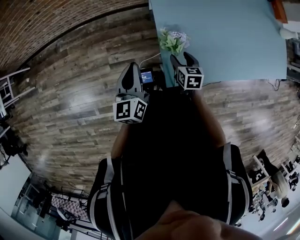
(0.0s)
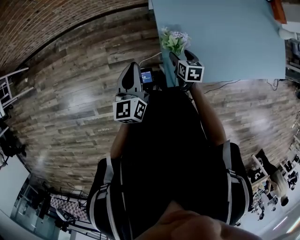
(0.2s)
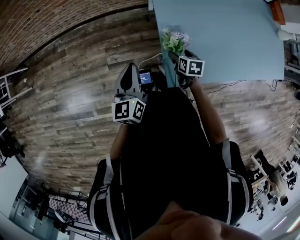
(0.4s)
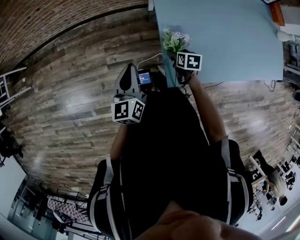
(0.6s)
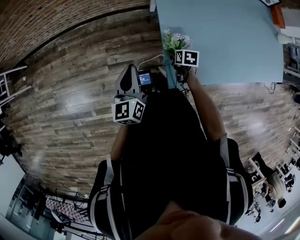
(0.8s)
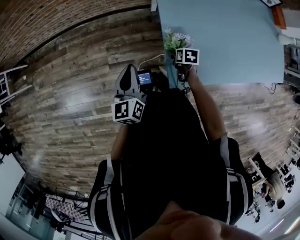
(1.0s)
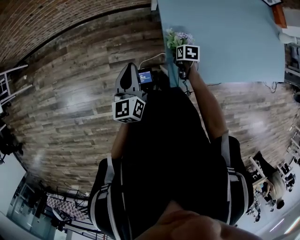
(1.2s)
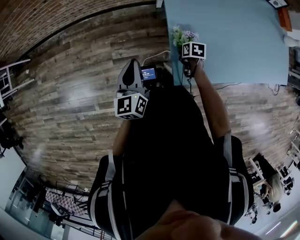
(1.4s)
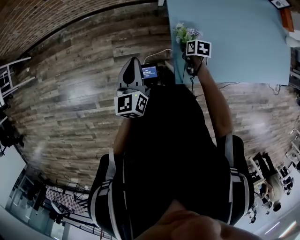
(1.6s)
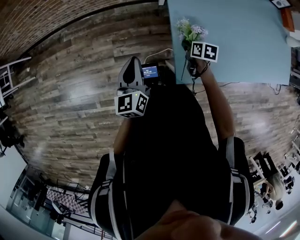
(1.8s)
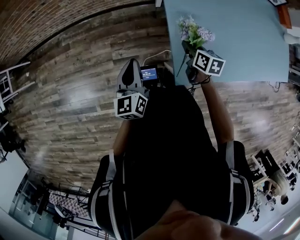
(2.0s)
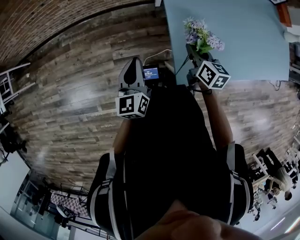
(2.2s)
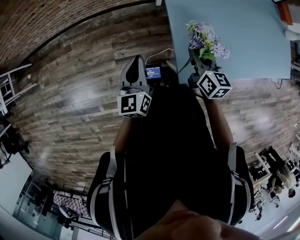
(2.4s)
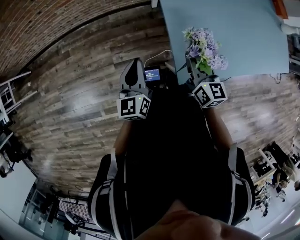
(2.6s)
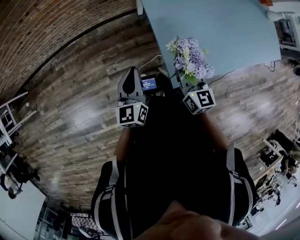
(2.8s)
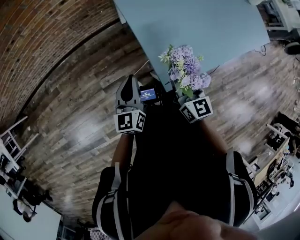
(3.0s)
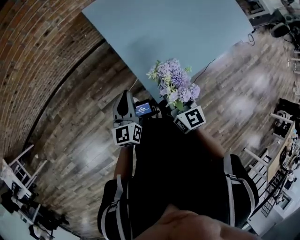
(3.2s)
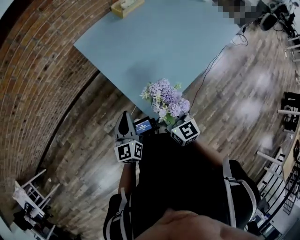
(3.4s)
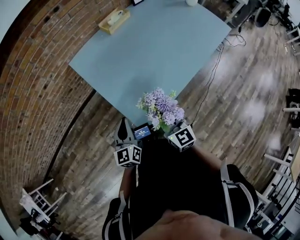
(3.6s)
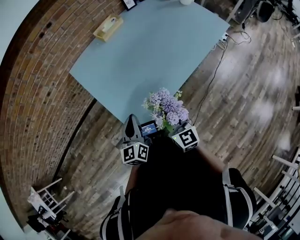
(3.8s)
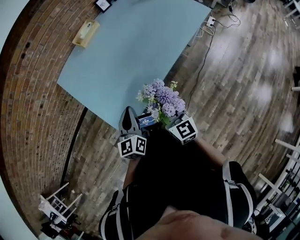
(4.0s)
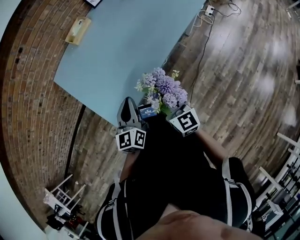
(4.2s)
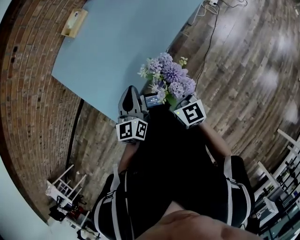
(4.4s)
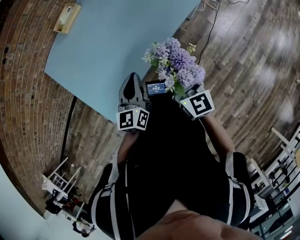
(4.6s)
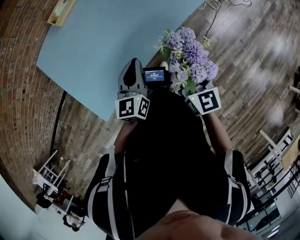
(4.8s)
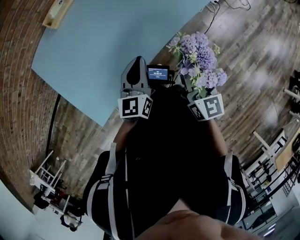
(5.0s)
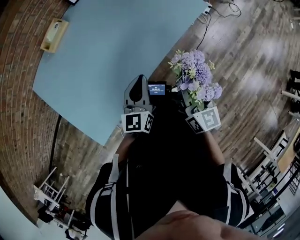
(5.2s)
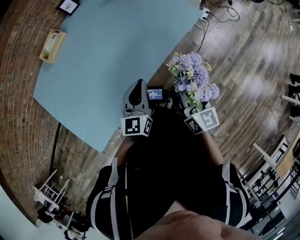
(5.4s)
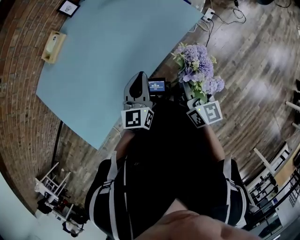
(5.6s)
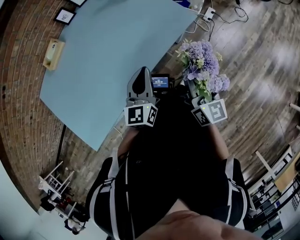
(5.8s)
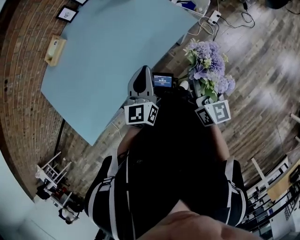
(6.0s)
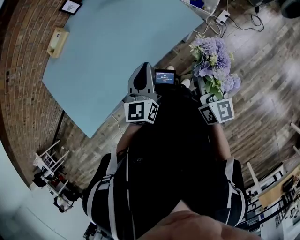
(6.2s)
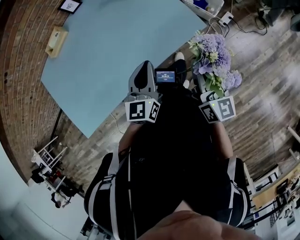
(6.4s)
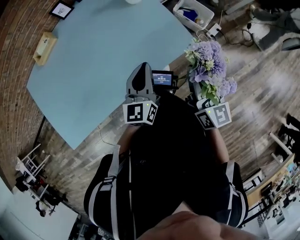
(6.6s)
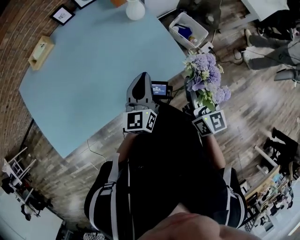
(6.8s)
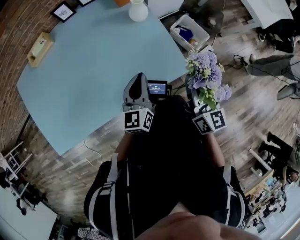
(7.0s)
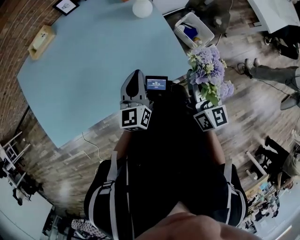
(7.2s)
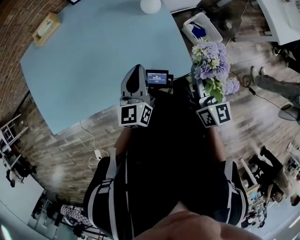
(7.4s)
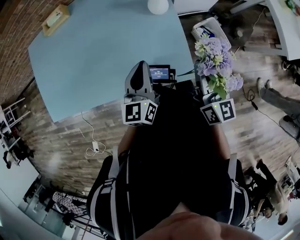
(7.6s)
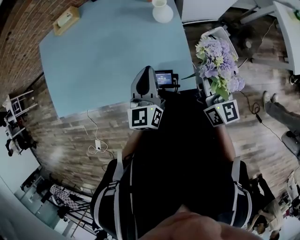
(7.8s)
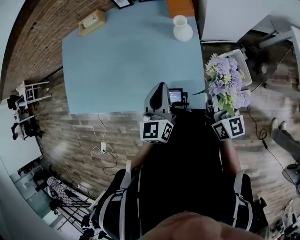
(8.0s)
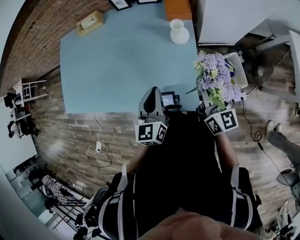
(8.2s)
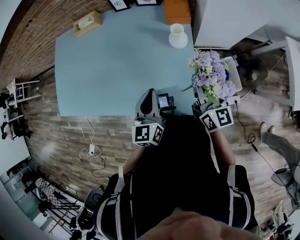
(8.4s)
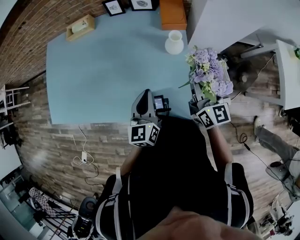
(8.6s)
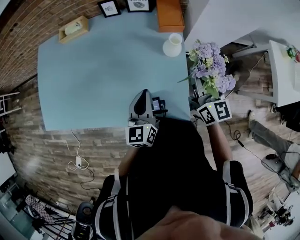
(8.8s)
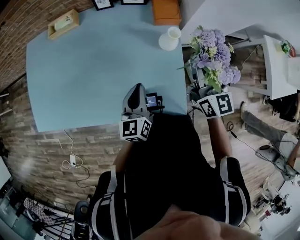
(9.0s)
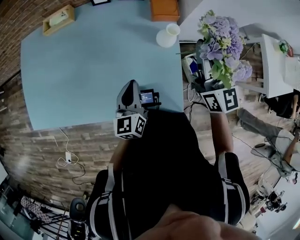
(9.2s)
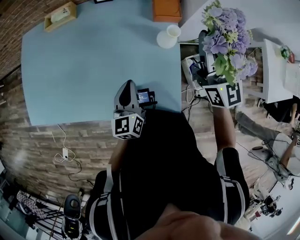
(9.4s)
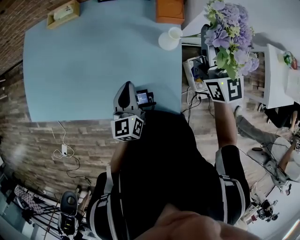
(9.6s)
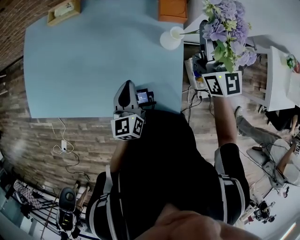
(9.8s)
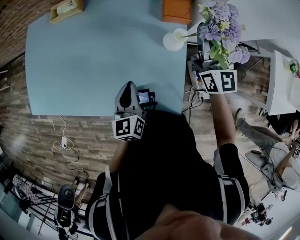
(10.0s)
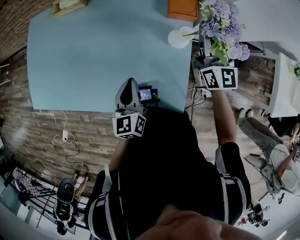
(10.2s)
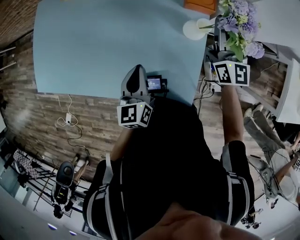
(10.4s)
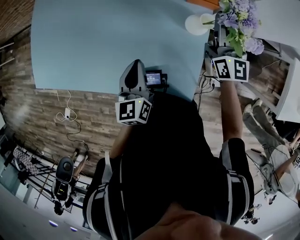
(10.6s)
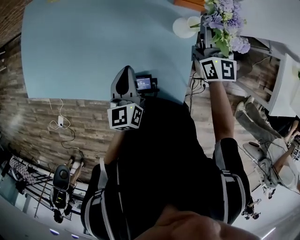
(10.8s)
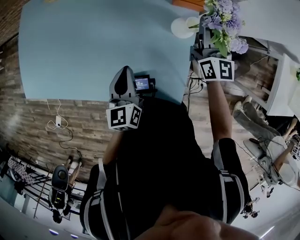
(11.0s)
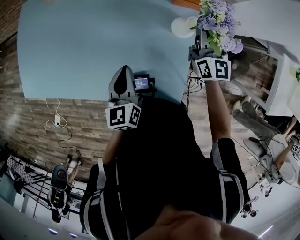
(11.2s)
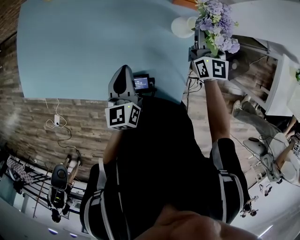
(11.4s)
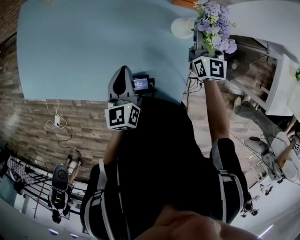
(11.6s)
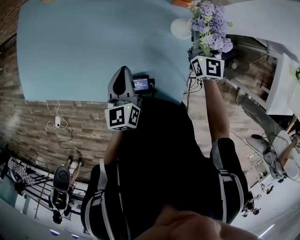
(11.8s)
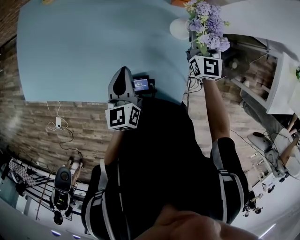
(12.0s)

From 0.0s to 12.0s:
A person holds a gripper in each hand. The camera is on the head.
From 0.0s to 1.6s: The left gripper goes roughly 5 cm to the left, while the right gripper is displaced downward by some 10 cm, turns by about 30 degrees, and closes its fingers.
From 1.6s to 3.0s: The right gripper shifts some 25 cm upward, and tilts its fingers roughly 50 degrees upward. Meanwhile the left gripper moves approximately 5 cm, and changes its angle by roughly 20 degrees.
From 3.0s to 4.4s: The two grippers travel together, to the right, some 50 cm. The left gripper turns by about 20 degrees.
From 4.4s to 6.0s: Both grippers are carried to the right and forward, roughly 50 cm.
From 6.0s to 7.6s: The right gripper ends up roughly 35 cm from where it was, and changes its angle by about 30 degrees, while the left gripper moves about 25 cm, and turns by approximately 30 degrees.
From 7.6s to 9.0s: The right gripper shifts approximately 20 cm forward. Meanwhile the left gripper travels forward by some 10 cm.
From 9.0s to 10.4s: The right gripper is displaced forward and downward by roughly 15 cm.
From 10.4s to 12.0s: The right gripper is displaced downward by roughly 10 cm.

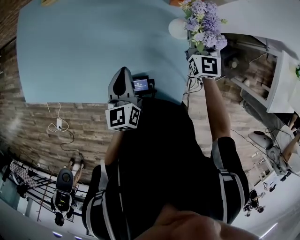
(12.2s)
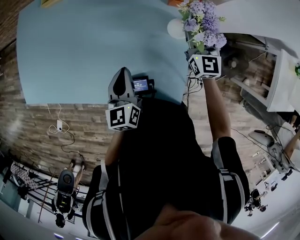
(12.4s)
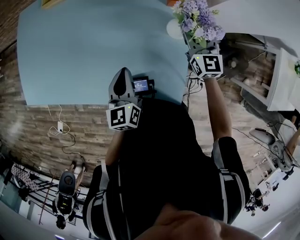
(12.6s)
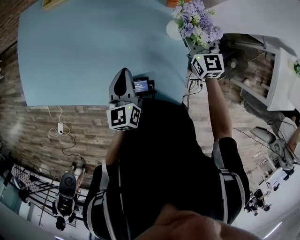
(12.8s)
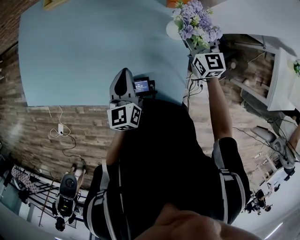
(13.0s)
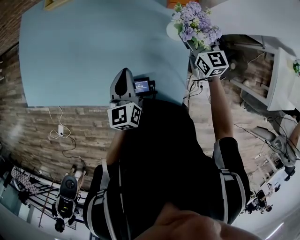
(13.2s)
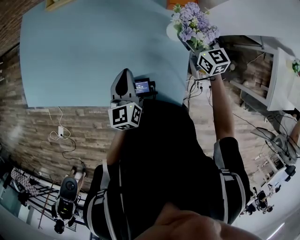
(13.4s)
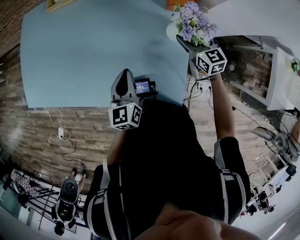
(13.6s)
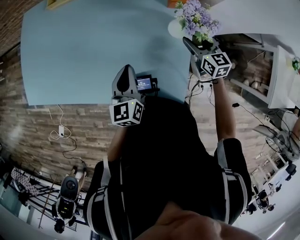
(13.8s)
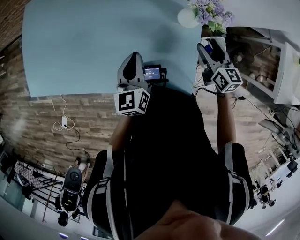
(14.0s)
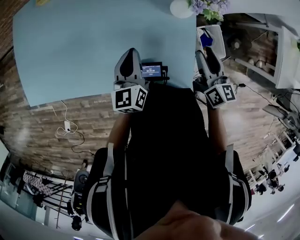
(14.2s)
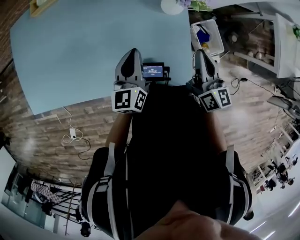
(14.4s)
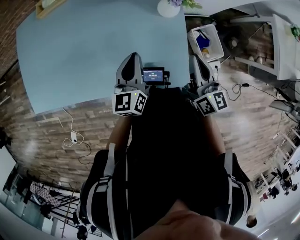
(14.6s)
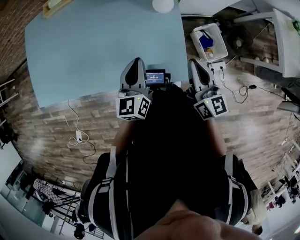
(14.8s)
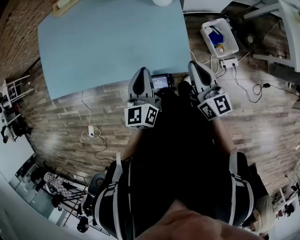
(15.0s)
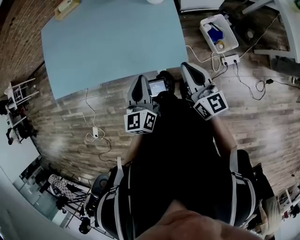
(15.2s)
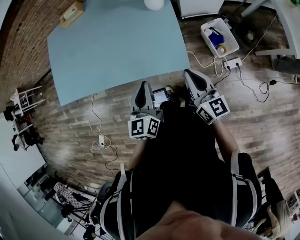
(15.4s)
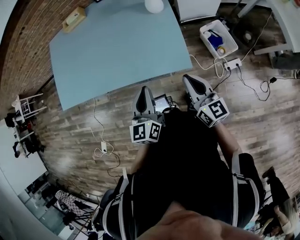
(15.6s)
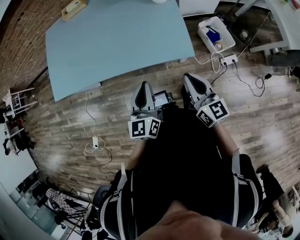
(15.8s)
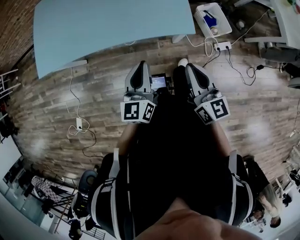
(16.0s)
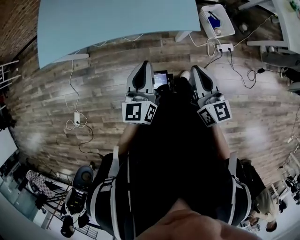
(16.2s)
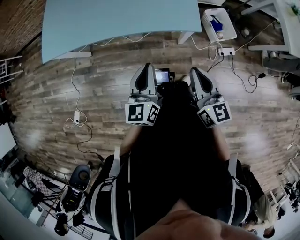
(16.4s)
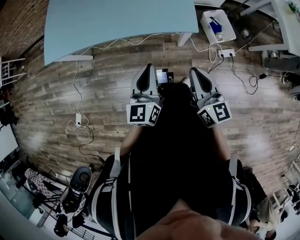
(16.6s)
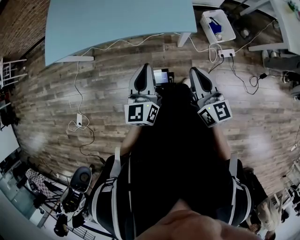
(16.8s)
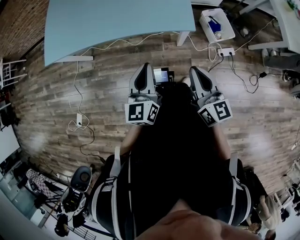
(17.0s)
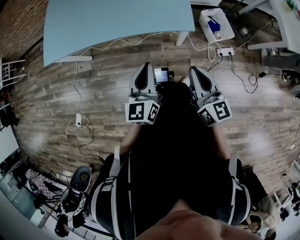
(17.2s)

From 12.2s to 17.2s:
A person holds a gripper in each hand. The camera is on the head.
From 12.2s to 13.8s: The right gripper shifts some 10 cm backward and downward, changes its angle by some 30 degrees, and opens.
From 13.8s to 15.6s: Both grippers travel together backward, some 40 cm. The right gripper rotates about 30 degrees, and closes up.
From 15.6s to 17.2s: The left gripper travels backward by some 15 cm. Meanwhile the right gripper shifts about 20 cm backward and to the left.

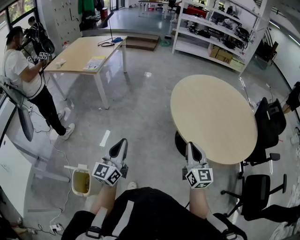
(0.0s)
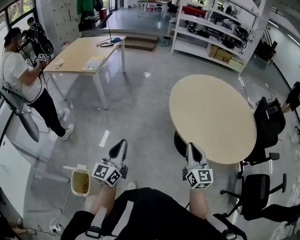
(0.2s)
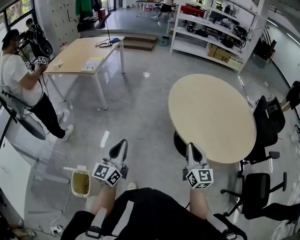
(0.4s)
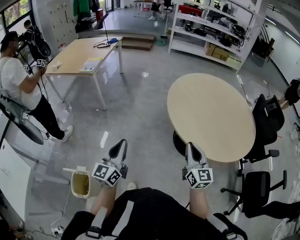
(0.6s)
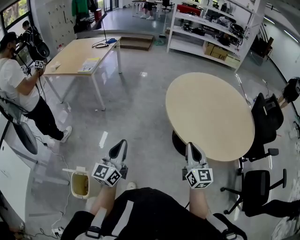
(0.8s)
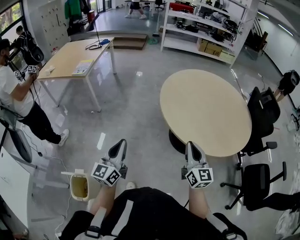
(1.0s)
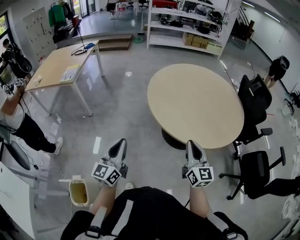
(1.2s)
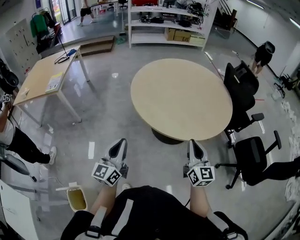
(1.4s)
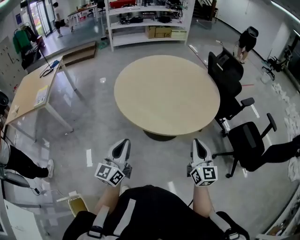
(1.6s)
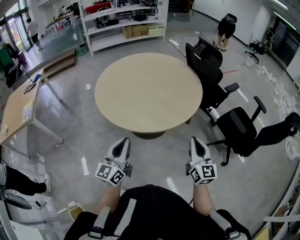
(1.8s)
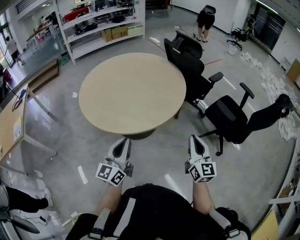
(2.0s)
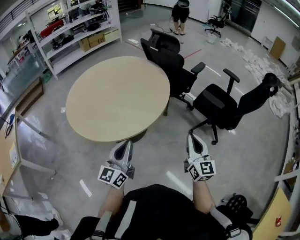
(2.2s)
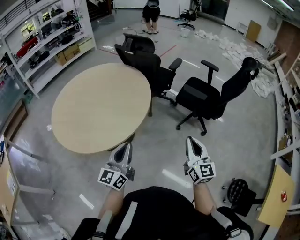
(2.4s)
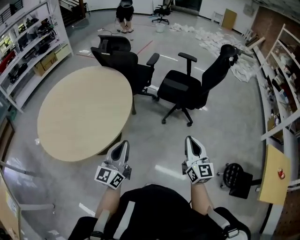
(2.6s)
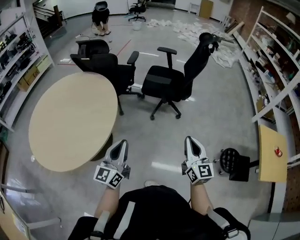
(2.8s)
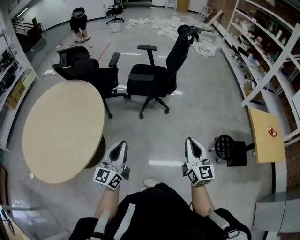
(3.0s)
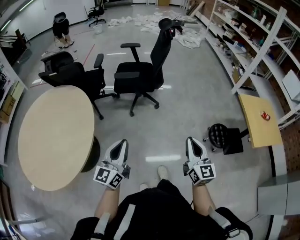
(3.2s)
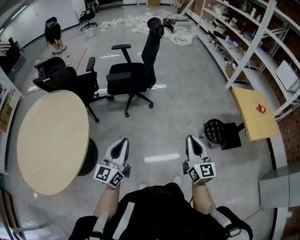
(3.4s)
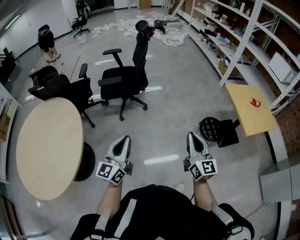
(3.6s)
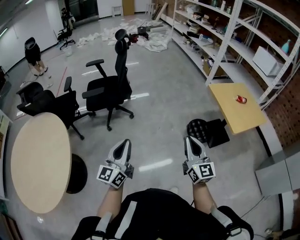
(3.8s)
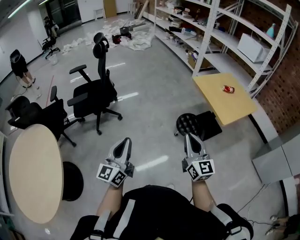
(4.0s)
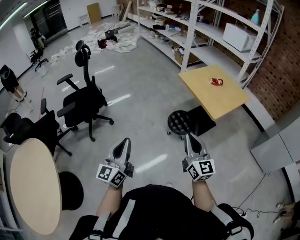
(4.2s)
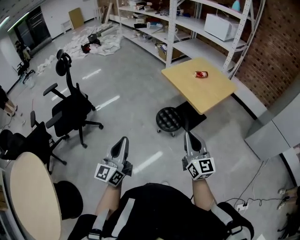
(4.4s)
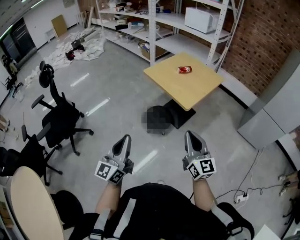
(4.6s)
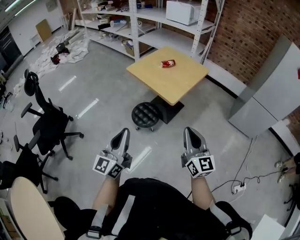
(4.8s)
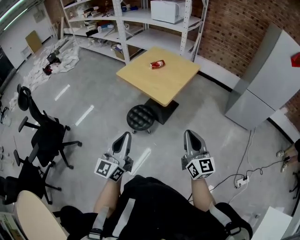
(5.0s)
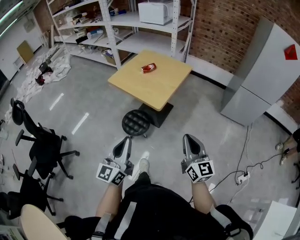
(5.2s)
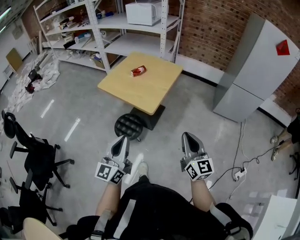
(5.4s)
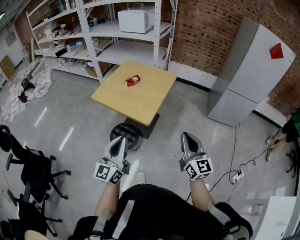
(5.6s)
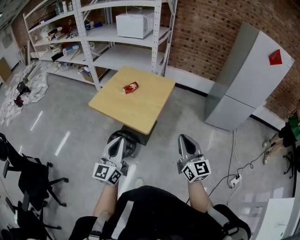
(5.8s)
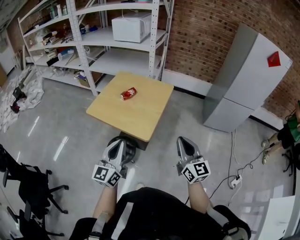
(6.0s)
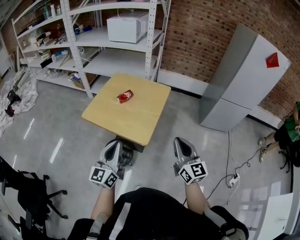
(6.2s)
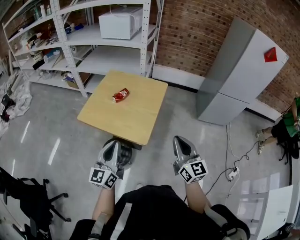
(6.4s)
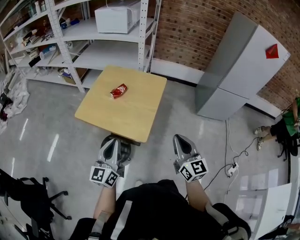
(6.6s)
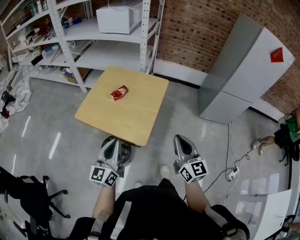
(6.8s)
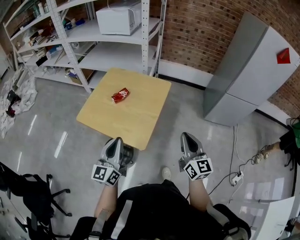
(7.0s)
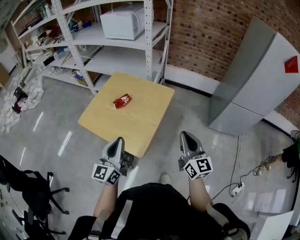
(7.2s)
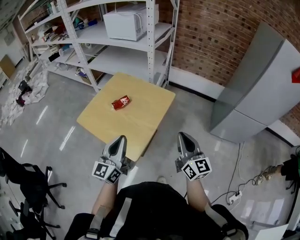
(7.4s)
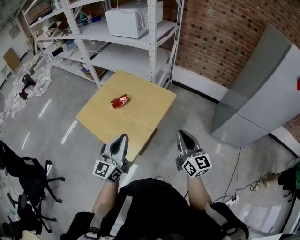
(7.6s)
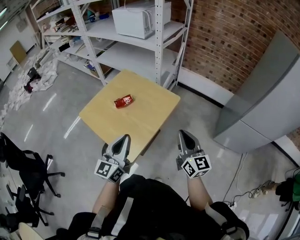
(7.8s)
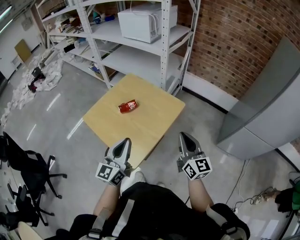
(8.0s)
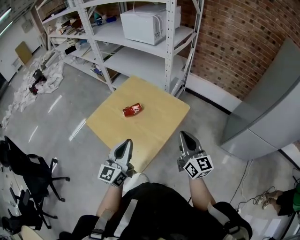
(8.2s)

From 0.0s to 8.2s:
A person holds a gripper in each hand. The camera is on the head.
From 0.0s to 1.6s: The left gripper moves roughly 25 cm, and swivels about 30 degrees, while the right gripper moves approximately 25 cm, and rotates some 30 degrees.
From 1.6s to 3.2s: The right gripper changes place by some 40 cm, and rotates roughly 70 degrees, while the left gripper moves roughly 35 cm, and turns by roughly 70 degrees.
From 3.2s to 5.0s: The pair of grippers is taken about 60 cm. The left gripper turns by roughly 60 degrees. The right gripper swivels roughly 50 degrees.
From 5.0s to 6.6s: Both grippers move forward, some 25 cm.
From 6.6s to 8.2s: The right gripper shifts some 25 cm forward, and changes its angle by approximately 20 degrees, while the left gripper moves forward and to the right, about 20 cm.
